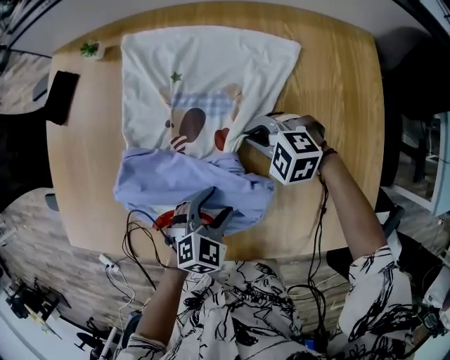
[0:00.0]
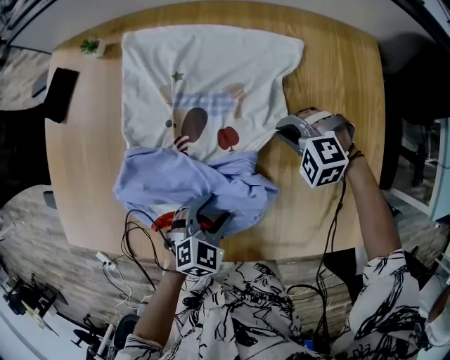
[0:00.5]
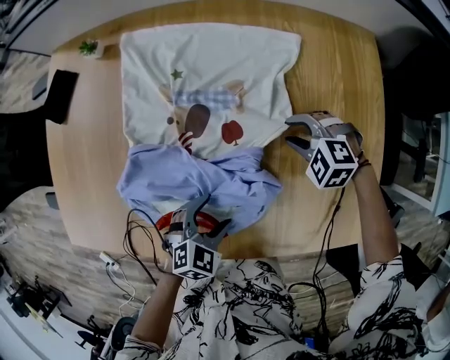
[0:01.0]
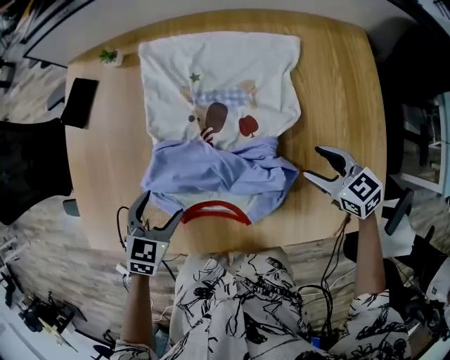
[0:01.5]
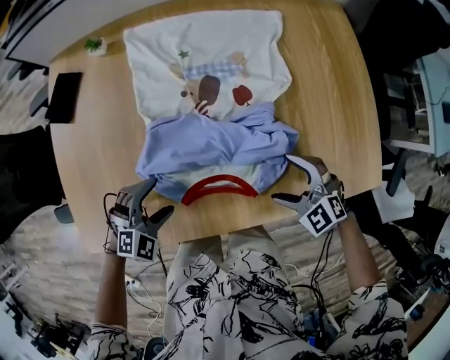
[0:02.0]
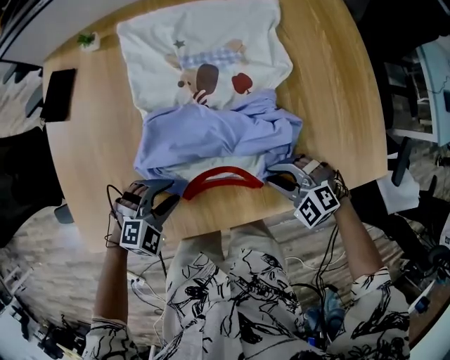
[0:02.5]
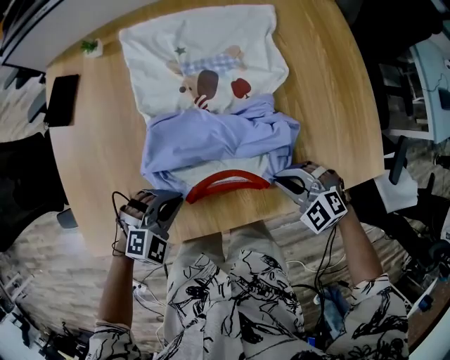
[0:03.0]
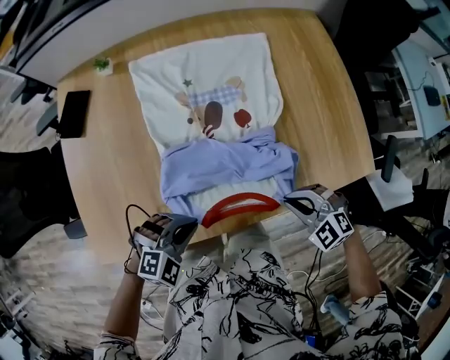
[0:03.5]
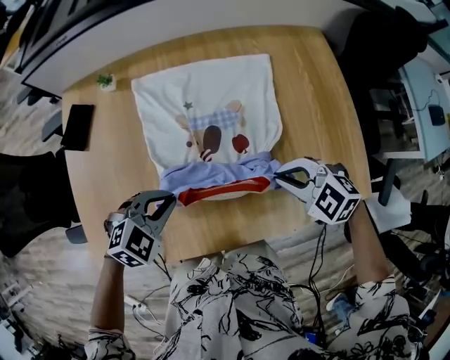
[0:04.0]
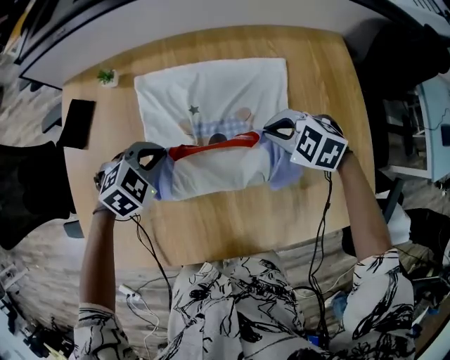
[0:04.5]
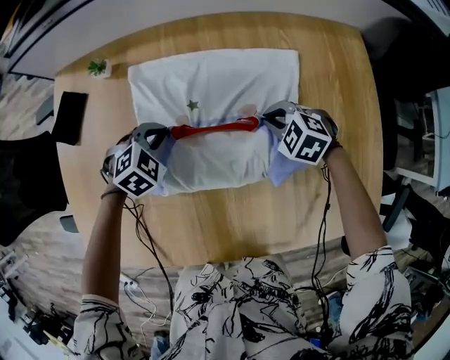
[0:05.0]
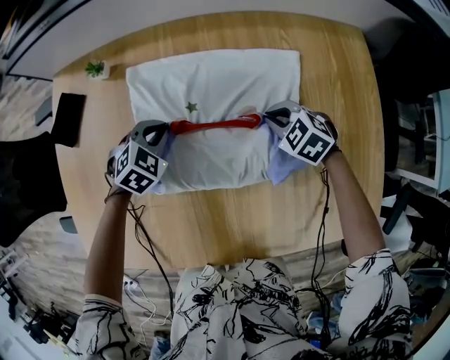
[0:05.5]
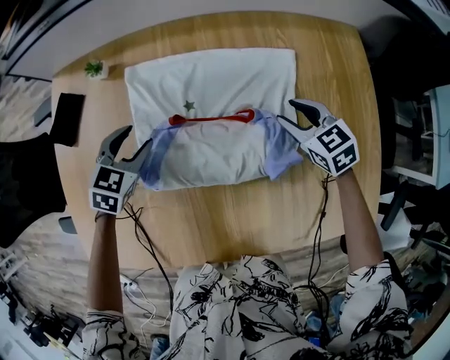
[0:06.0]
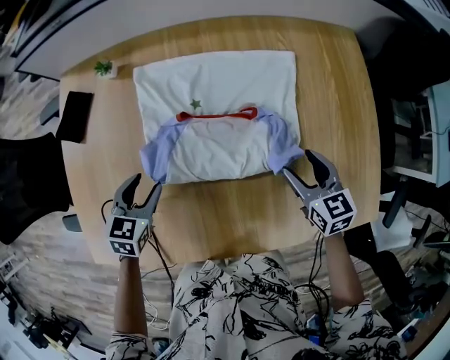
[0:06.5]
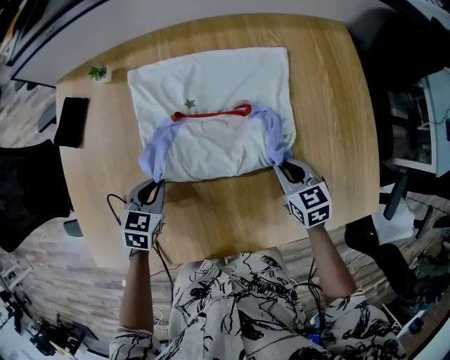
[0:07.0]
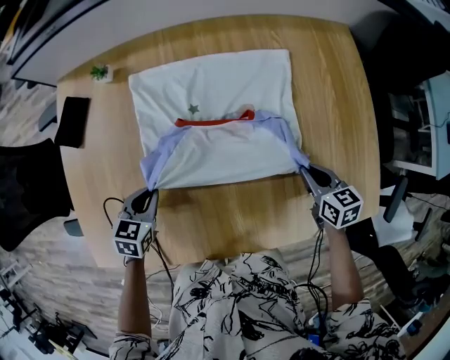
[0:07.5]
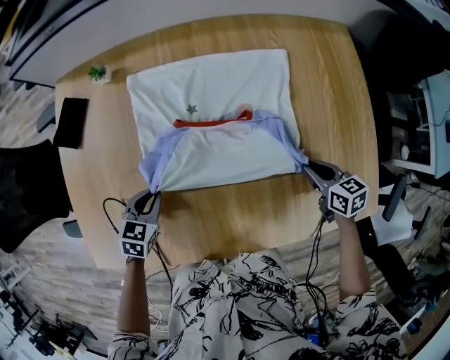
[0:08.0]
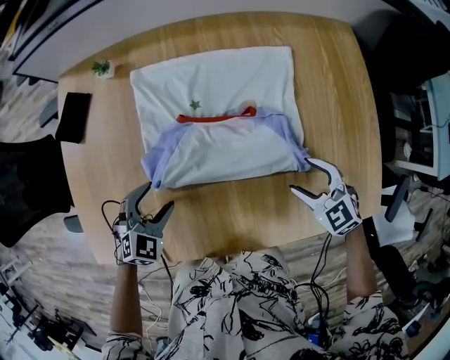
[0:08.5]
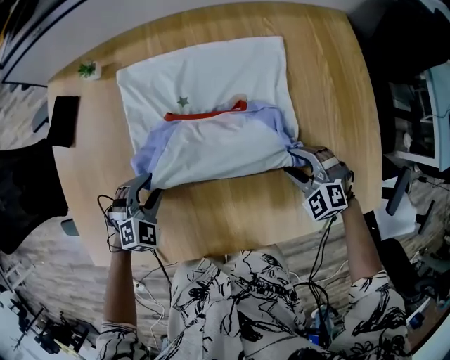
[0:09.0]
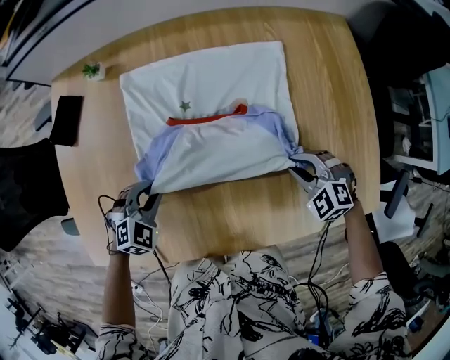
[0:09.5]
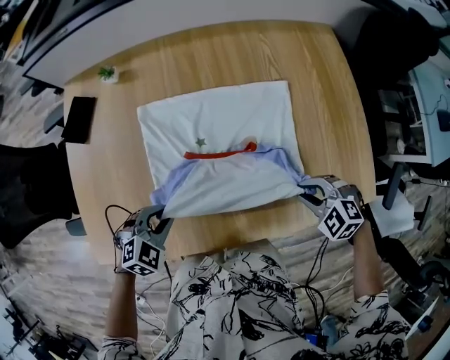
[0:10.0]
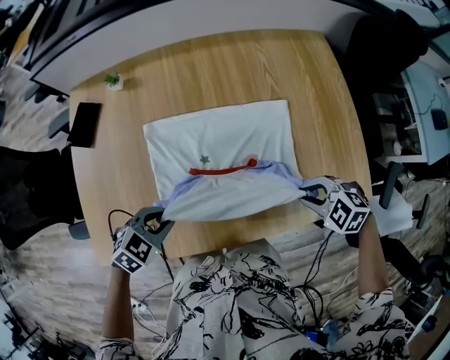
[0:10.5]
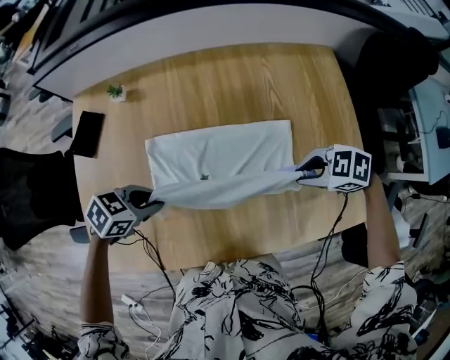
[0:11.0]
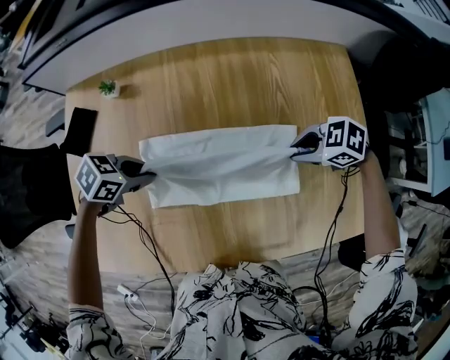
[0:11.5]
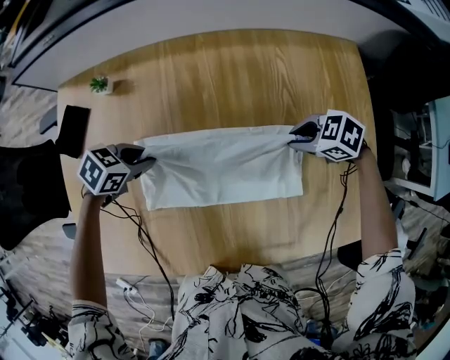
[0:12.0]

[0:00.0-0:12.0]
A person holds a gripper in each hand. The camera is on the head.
0:00.0 to 0:02.0: The right gripper is displaced backward by approximately 20 cm, swivels some 30 degrees, and opens its fingers; the left gripper moves to the left, some 25 cm, and rotates approximately 40 degrees.
0:02.0 to 0:04.0: The two grippers go approximately 10 cm upward. The left gripper closes its fingers. Meanwhile the right gripper closes its fingers.
0:04.0 to 0:06.0: The left gripper travels forward by some 20 cm, swivels about 30 degrees, and opens. The right gripper shifts approximately 25 cm forward and downward, changes its angle by roughly 30 degrees, and opens up.
0:06.0 to 0:08.0: The right gripper goes some 20 cm backward and to the right, and swivels about 30 degrees, while the left gripper travels backward by roughly 15 cm, and closes up.
0:08.0 to 0:10.0: The left gripper travels backward and upward by some 10 cm, changes its angle by about 40 degrees, and opens and closes again. Meanwhile the right gripper heads backward, to the left and upward, covering about 15 cm, twists approximately 60 degrees counterclockwise, seen from behind, and opens and closes again.
0:10.0 to 0:12.0: The left gripper moves roughly 5 cm upward and comes back, and rotates roughly 30 degrees. Meanwhile the right gripper moves about 25 cm, and turns by roughly 30 degrees.

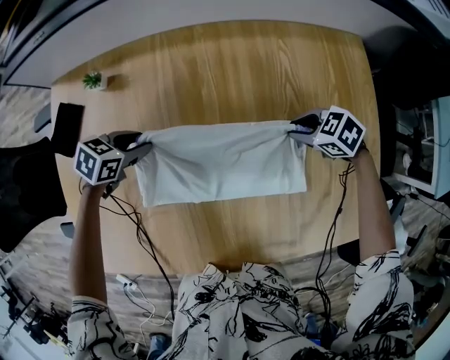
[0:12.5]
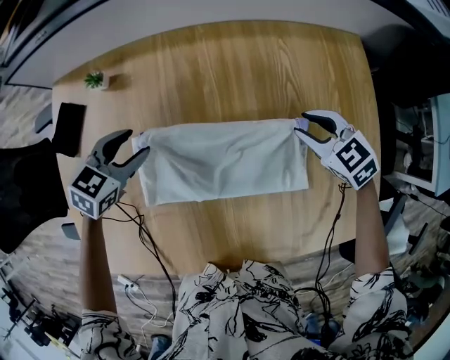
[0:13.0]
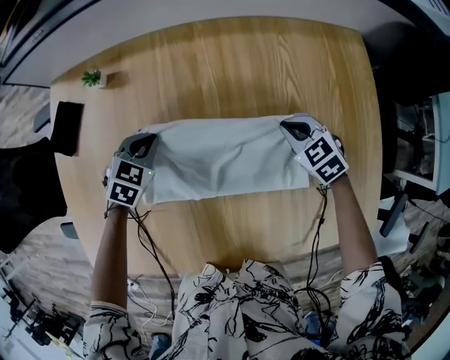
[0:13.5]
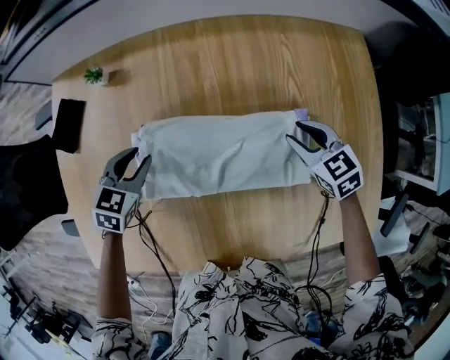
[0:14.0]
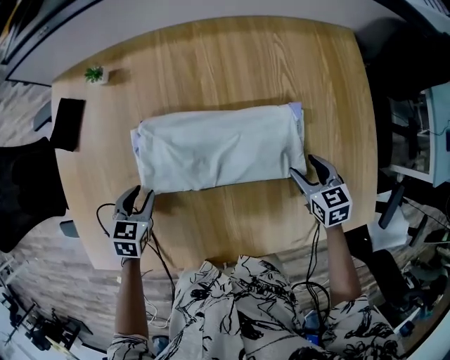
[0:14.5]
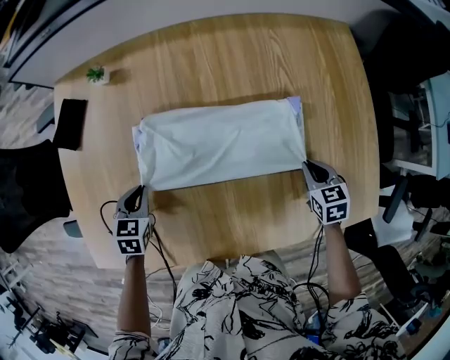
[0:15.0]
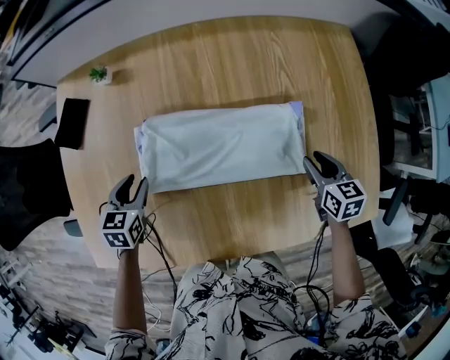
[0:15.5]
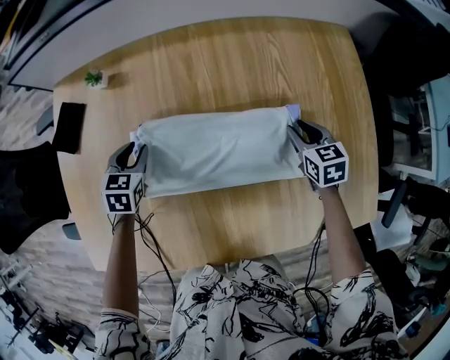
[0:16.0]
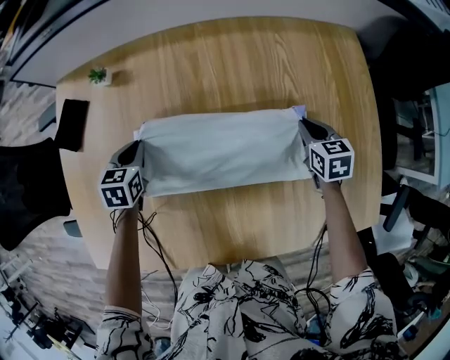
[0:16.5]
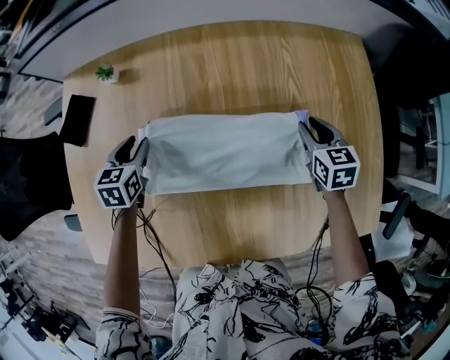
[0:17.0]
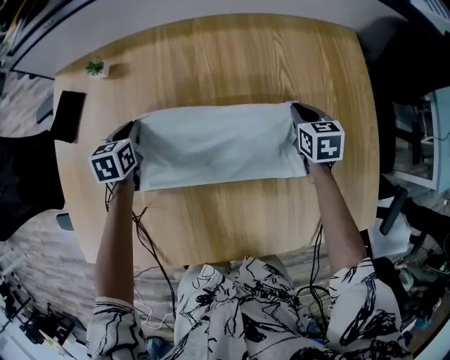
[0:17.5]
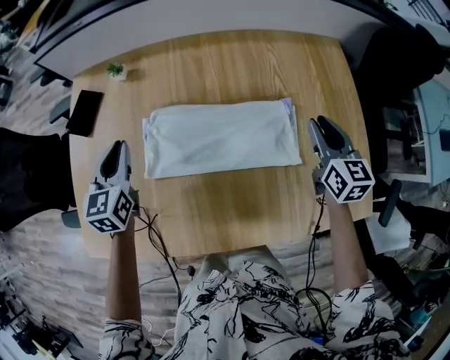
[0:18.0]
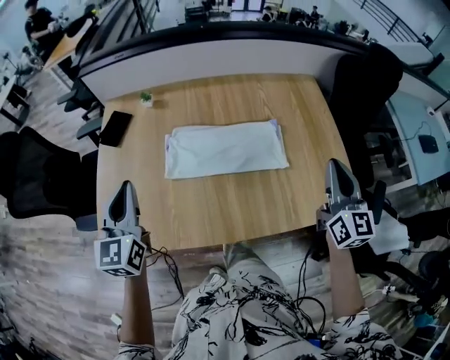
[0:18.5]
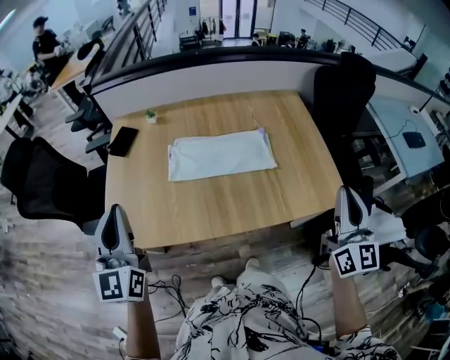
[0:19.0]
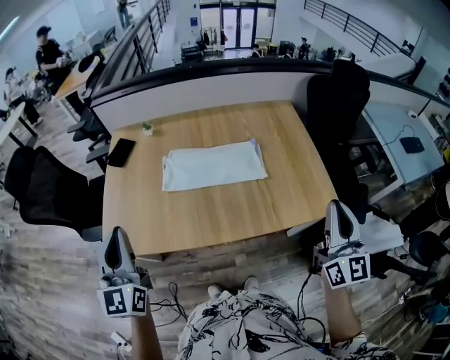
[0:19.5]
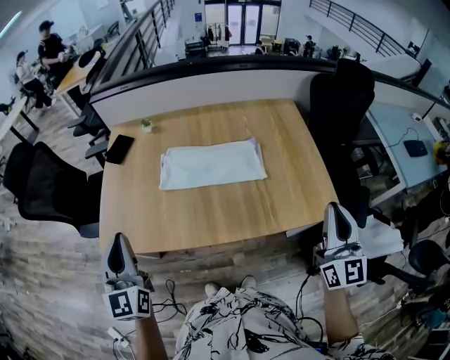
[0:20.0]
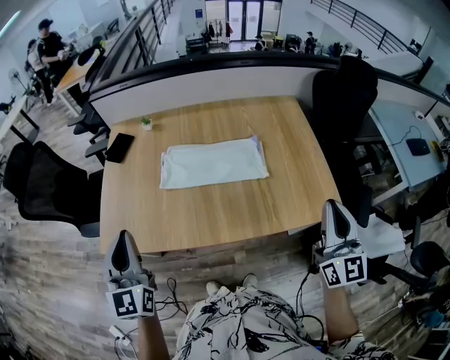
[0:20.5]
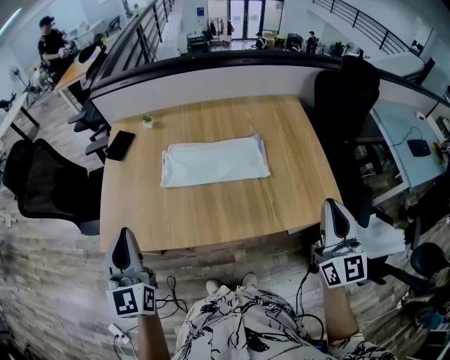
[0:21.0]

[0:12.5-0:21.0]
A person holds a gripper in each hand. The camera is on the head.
0:12.5 to 0:14.5: The left gripper swings up and down, about 10 cm each way, with 3 reversals, and rotates approximately 30 degrees; the right gripper swings up and down, some 10 cm each way, with 2 reversals, rotates roughly 50 degrees, and opens its fingers.
0:14.5 to 0:16.5: Both grippers move forward, roughly 15 cm. The right gripper closes its fingers.
0:16.5 to 0:19.0: The pair of grippers is taken backward, some 40 cm. Both grippers travel together upward, roughly 40 cm. The left gripper tilts its fingers some 60 degrees upward, while the right gripper tips its fingers upward by about 60 degrees.
0:19.0 to 0:21.0: The left gripper is displaced to the right by about 5 cm.

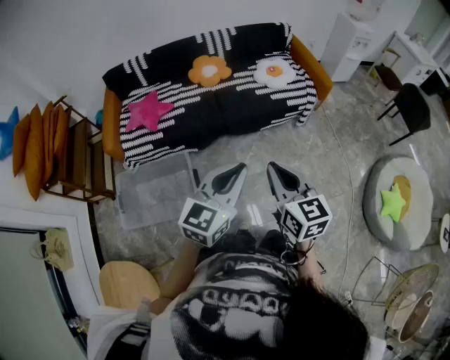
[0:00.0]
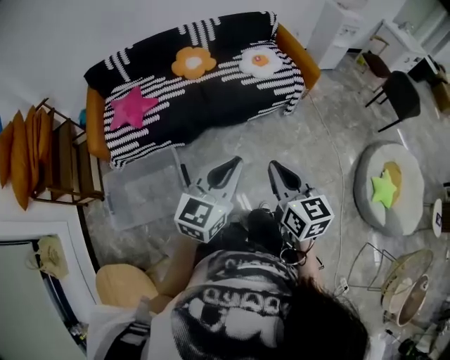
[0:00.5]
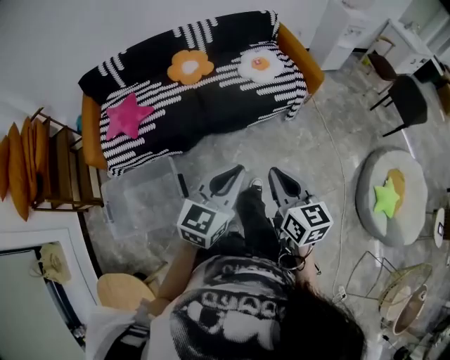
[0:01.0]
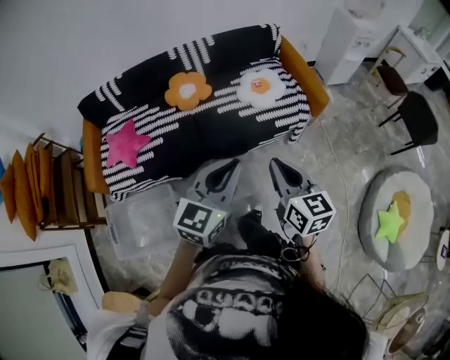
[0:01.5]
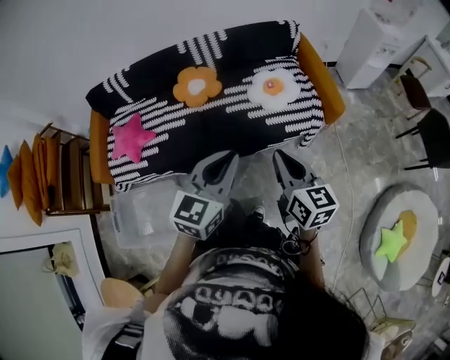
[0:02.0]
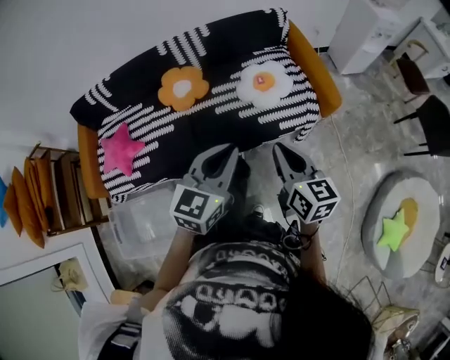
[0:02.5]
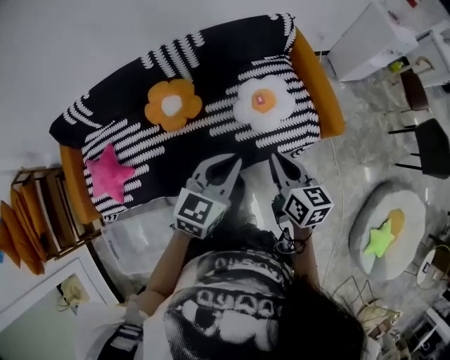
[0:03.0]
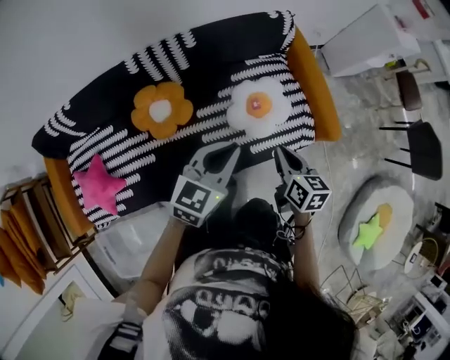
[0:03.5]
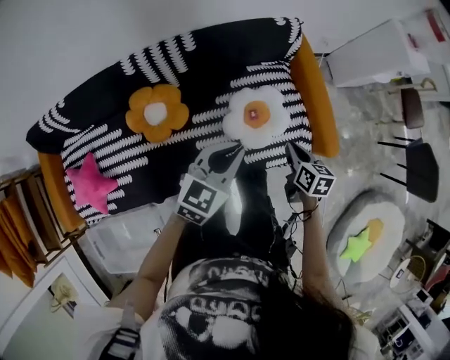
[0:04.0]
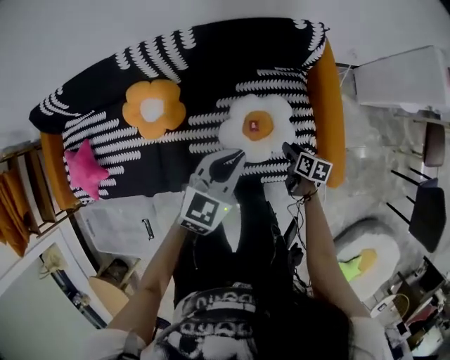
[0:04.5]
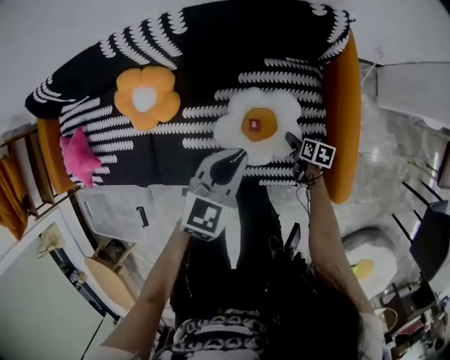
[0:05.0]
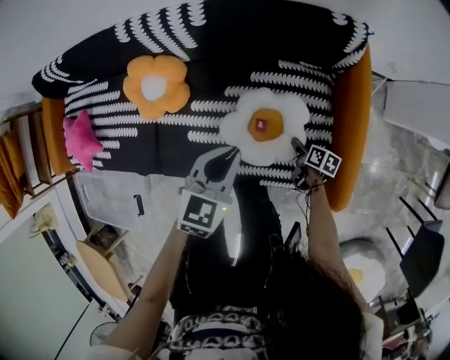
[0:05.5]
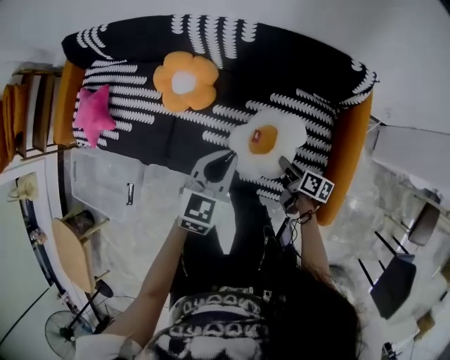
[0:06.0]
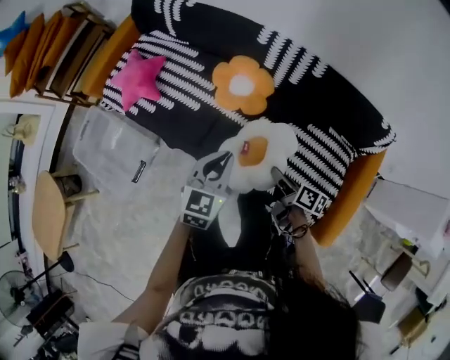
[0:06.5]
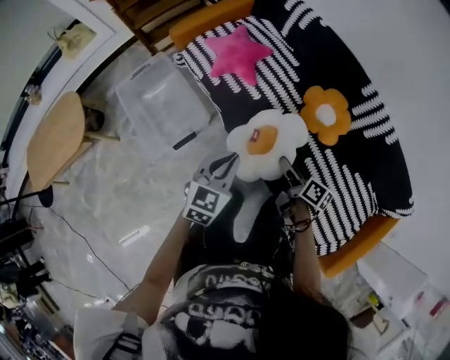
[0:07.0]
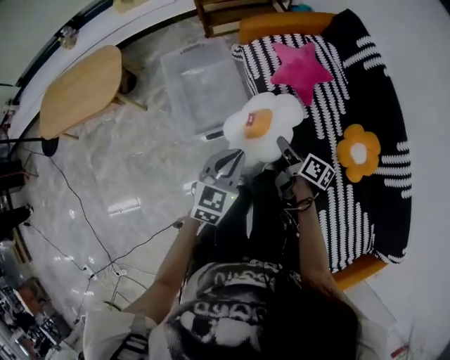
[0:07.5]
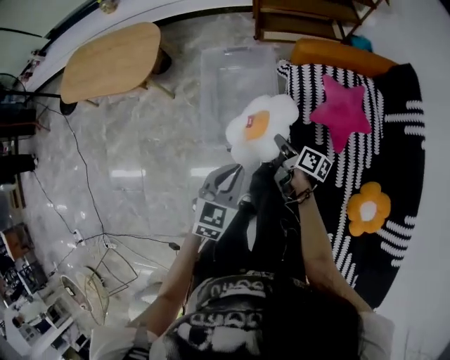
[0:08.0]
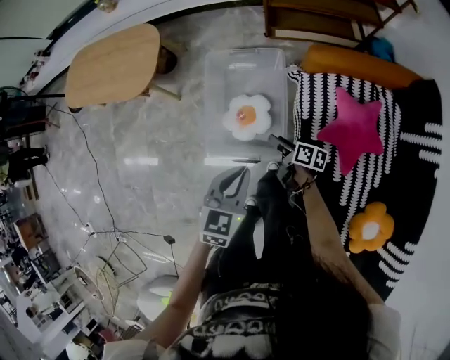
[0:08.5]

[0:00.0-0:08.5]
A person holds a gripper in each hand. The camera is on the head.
0:00.0 to 0:02.0: Both grippers move forward, approximately 40 cm.
0:02.0 to 0:04.0: The pair of grippers is taken forward, about 40 cm. The right gripper travels downward by roughly 25 cm, and points its fingers roughly 30 degrees further downward.
0:04.0 to 0:06.5: The left gripper goes downward and returns, some 15 cm each way, and turns by approximately 60 degrees; the right gripper moves roughly 35 cm downward and comes back, turns by about 50 degrees, and opens, then closes once more.
0:06.5 to 0:08.5: Both grippers are carried roughly 80 cm. The right gripper turns by approximately 70 degrees, and opens; the left gripper swivels roughly 60 degrees.
